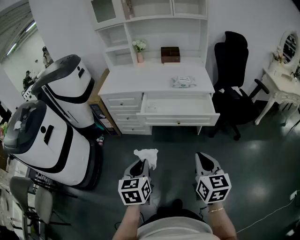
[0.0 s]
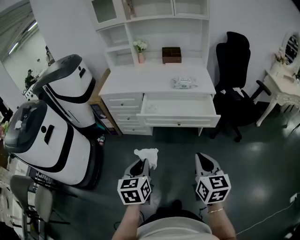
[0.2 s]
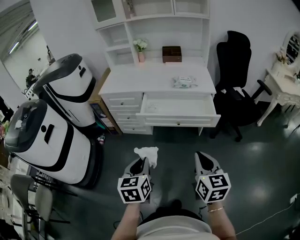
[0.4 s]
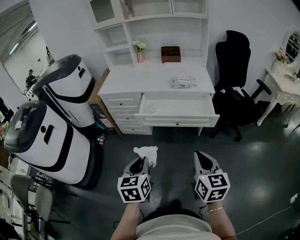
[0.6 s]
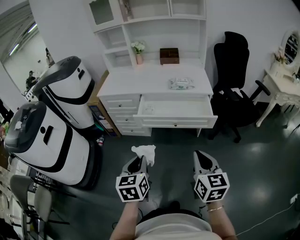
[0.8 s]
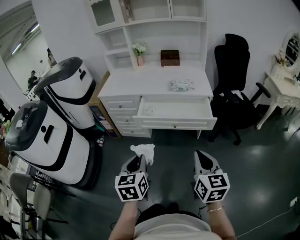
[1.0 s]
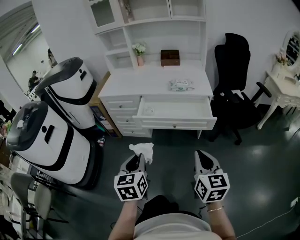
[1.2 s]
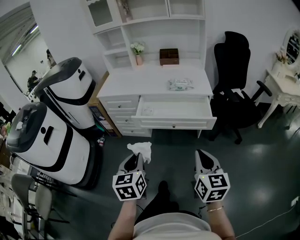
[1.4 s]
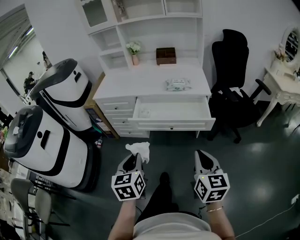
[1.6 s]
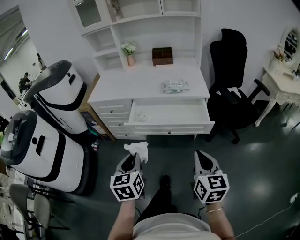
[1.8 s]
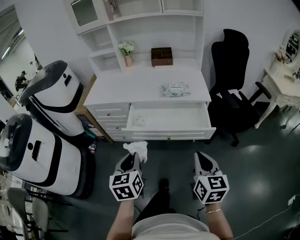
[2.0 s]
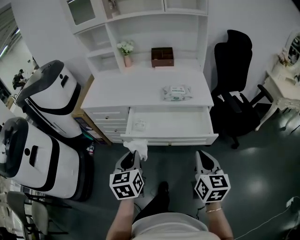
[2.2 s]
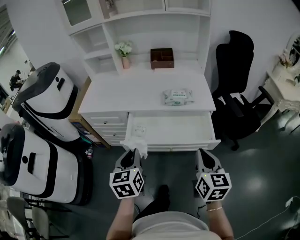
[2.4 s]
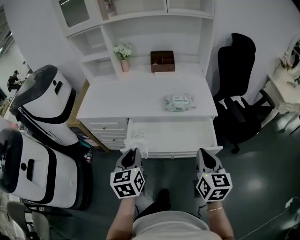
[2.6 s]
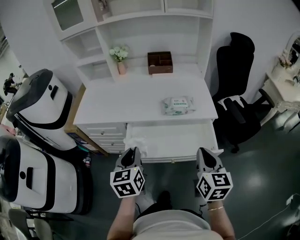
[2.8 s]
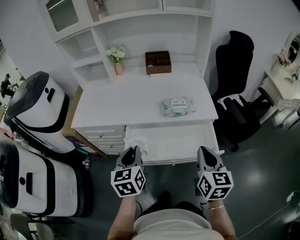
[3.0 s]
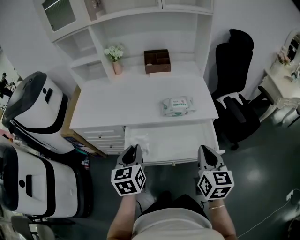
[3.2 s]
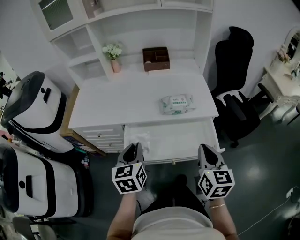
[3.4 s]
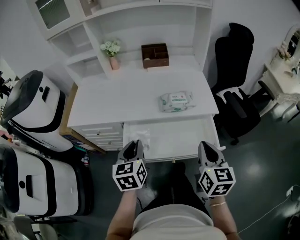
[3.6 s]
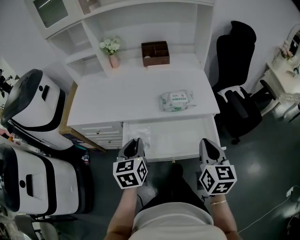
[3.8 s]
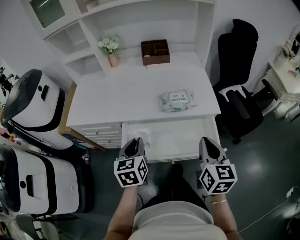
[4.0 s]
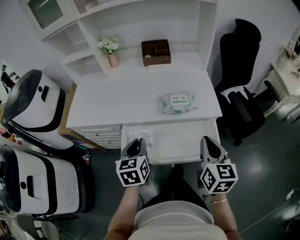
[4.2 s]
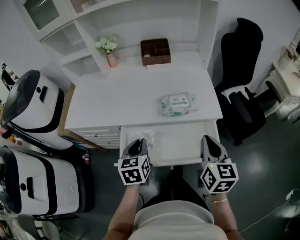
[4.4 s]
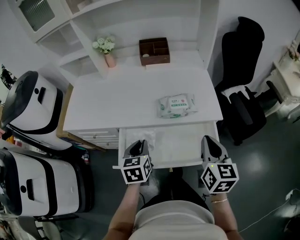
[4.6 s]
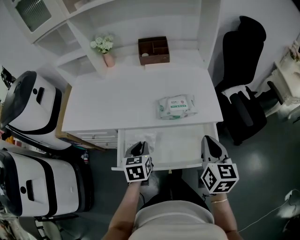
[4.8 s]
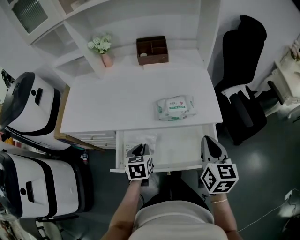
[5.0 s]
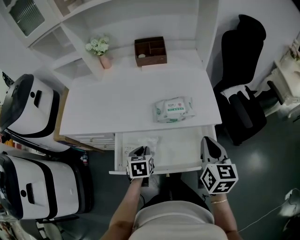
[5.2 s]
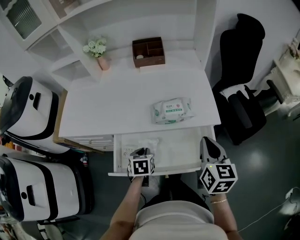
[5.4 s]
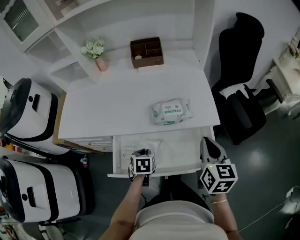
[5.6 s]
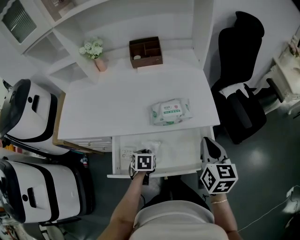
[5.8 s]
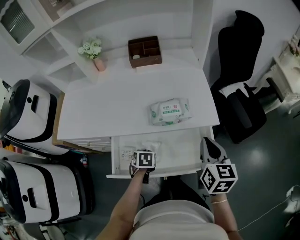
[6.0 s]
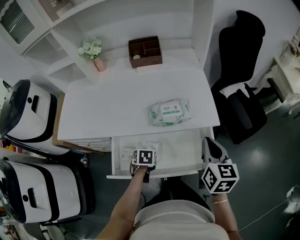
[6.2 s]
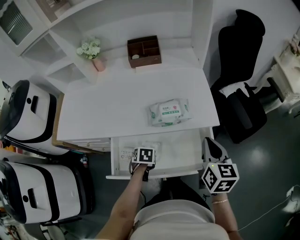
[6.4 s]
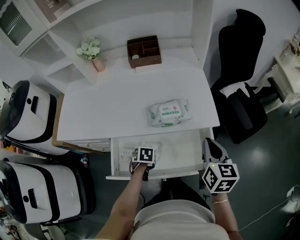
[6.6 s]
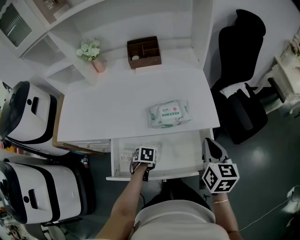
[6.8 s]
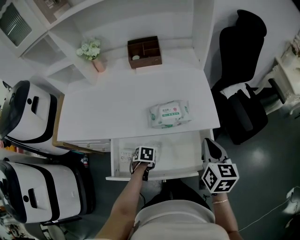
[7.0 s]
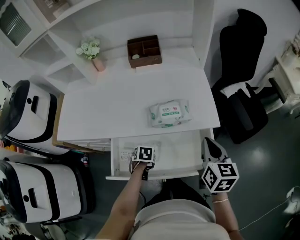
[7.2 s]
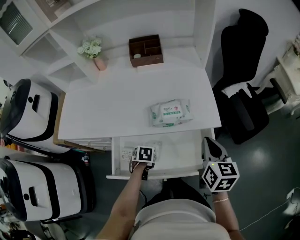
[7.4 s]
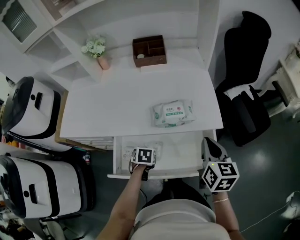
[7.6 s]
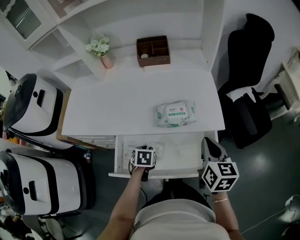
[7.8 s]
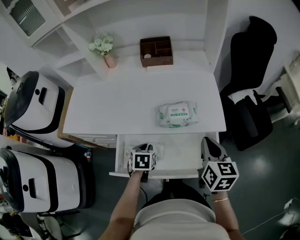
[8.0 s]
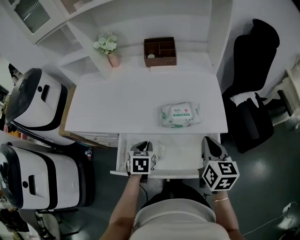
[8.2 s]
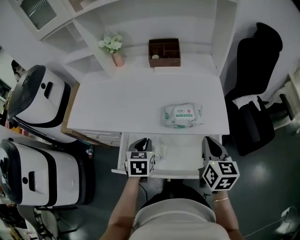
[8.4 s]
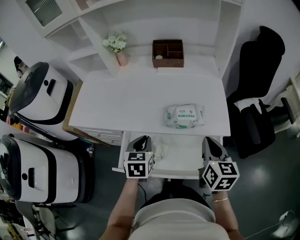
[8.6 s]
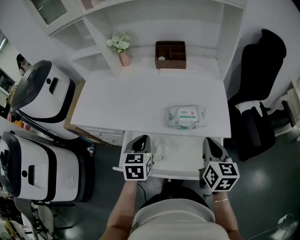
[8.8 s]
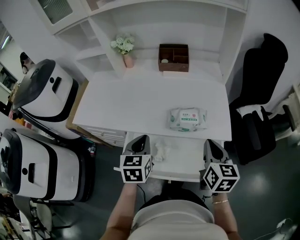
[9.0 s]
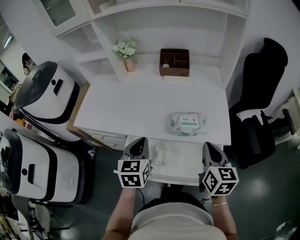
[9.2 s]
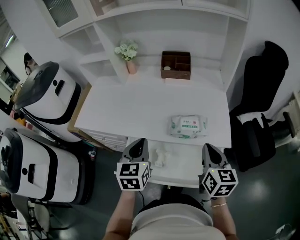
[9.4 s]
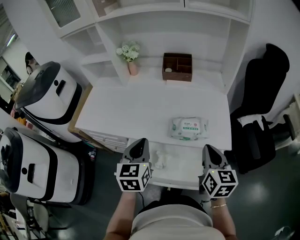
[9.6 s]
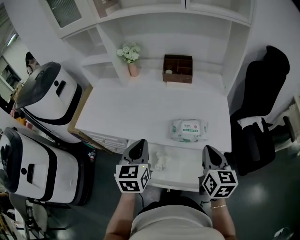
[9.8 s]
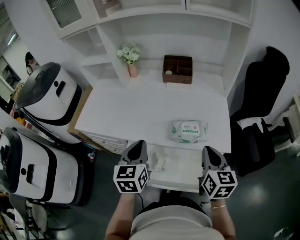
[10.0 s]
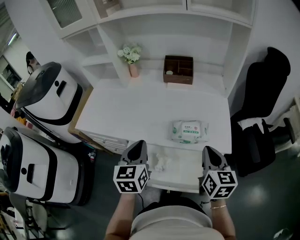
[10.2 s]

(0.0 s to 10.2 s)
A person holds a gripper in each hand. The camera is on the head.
0.0 s - 1.4 s: The right gripper travels to the right by roughly 5 cm, while the left gripper moves approximately 5 cm.
1.4 s - 3.0 s: Both grippers move forward, about 35 cm.
3.0 s - 4.4 s: The left gripper is displaced forward and downward by roughly 10 cm. The right gripper travels forward by roughly 10 cm.
4.4 s - 5.8 s: The right gripper heads forward, covering approximately 5 cm. Meanwhile the left gripper travels downward by about 15 cm, and tips its fingers downward by roughly 30 degrees.
5.8 s - 7.2 s: The left gripper goes approximately 5 cm downward.
7.2 s - 8.8 s: The right gripper shifts by about 5 cm. The left gripper goes about 25 cm upward, and tilts its fingers roughly 40 degrees upward.
8.8 s - 10.2 s: The left gripper is displaced upward by about 5 cm.

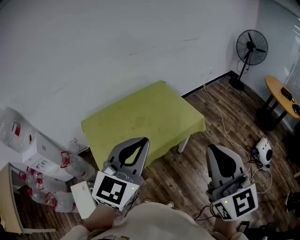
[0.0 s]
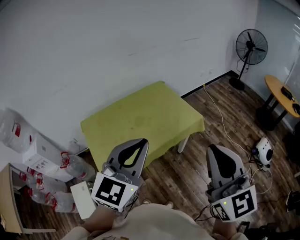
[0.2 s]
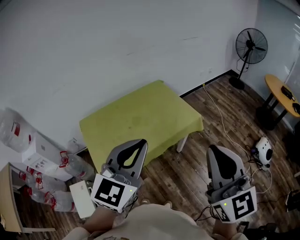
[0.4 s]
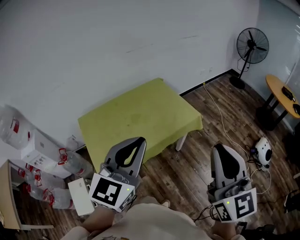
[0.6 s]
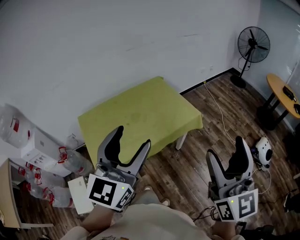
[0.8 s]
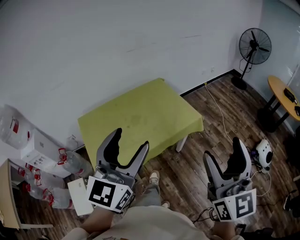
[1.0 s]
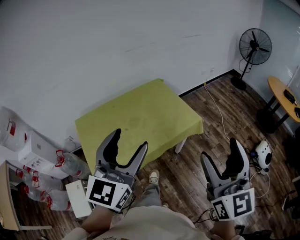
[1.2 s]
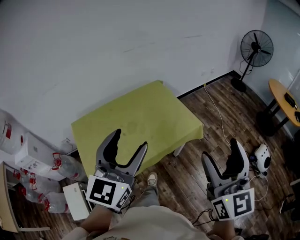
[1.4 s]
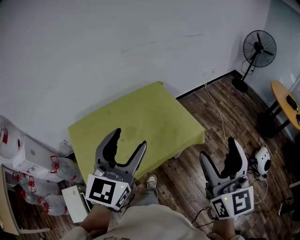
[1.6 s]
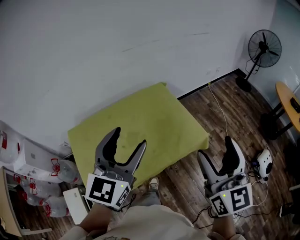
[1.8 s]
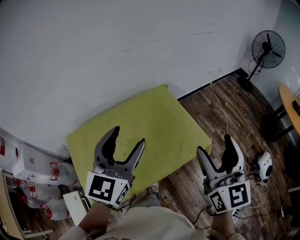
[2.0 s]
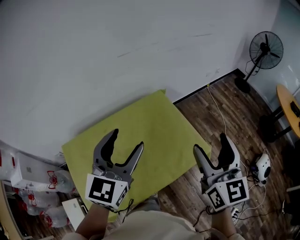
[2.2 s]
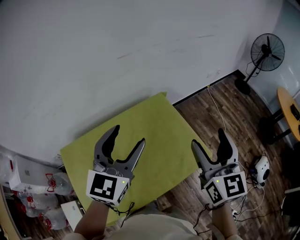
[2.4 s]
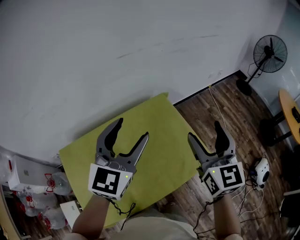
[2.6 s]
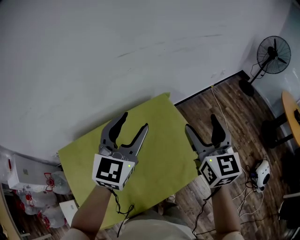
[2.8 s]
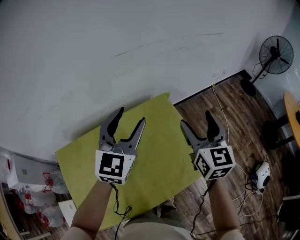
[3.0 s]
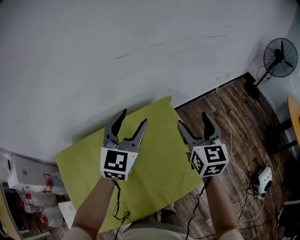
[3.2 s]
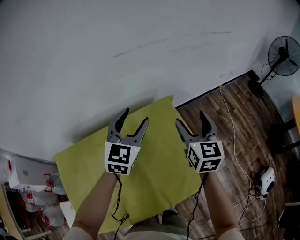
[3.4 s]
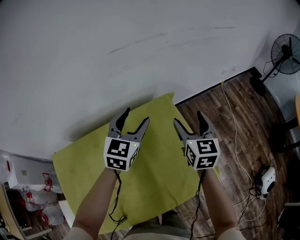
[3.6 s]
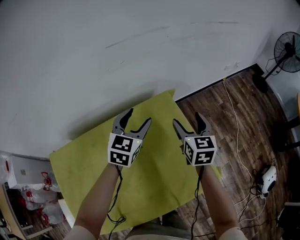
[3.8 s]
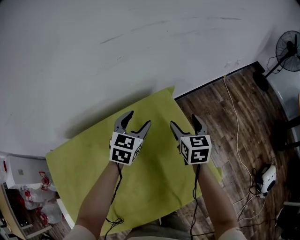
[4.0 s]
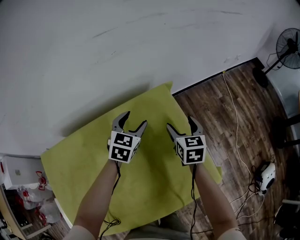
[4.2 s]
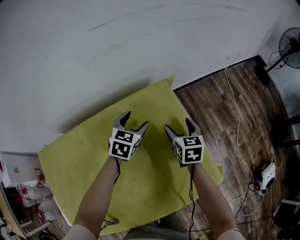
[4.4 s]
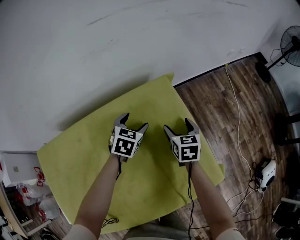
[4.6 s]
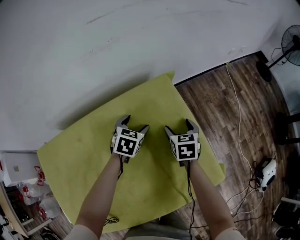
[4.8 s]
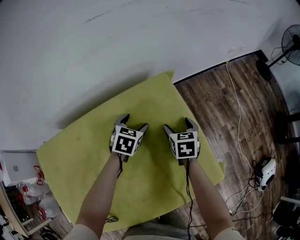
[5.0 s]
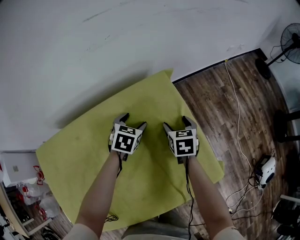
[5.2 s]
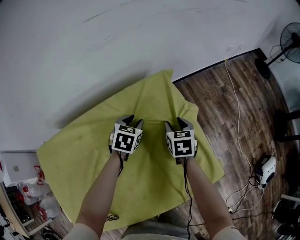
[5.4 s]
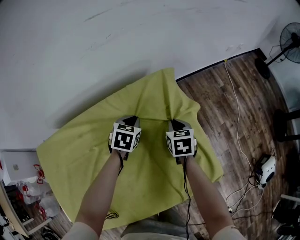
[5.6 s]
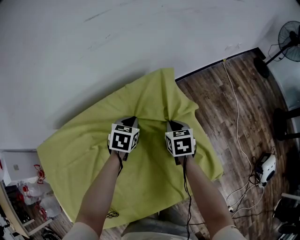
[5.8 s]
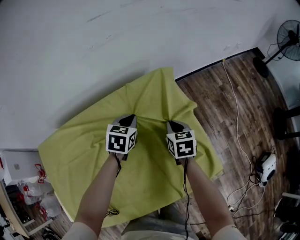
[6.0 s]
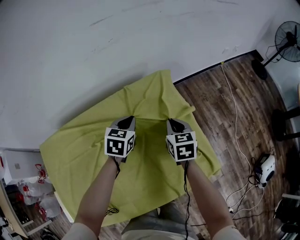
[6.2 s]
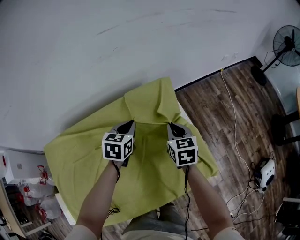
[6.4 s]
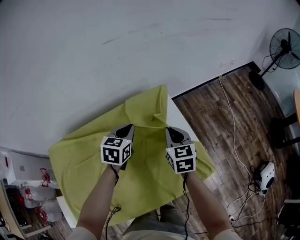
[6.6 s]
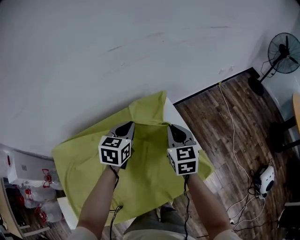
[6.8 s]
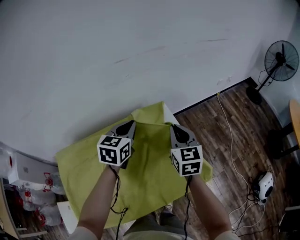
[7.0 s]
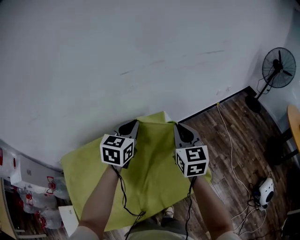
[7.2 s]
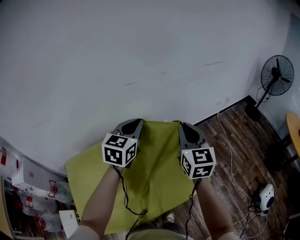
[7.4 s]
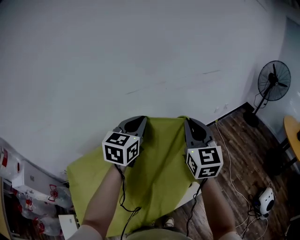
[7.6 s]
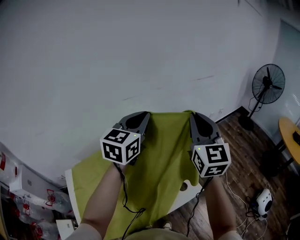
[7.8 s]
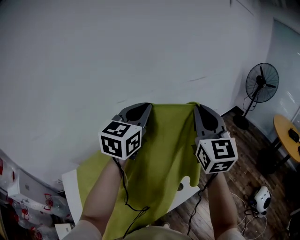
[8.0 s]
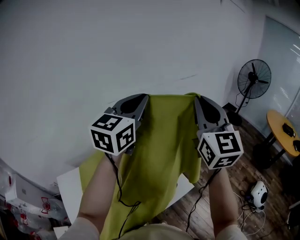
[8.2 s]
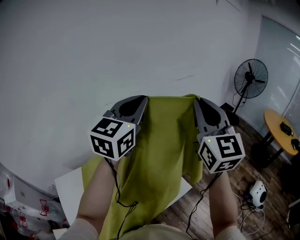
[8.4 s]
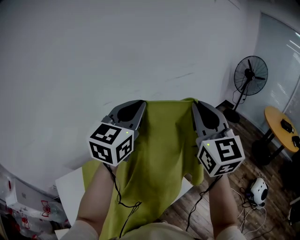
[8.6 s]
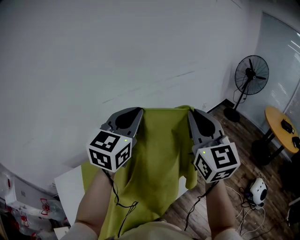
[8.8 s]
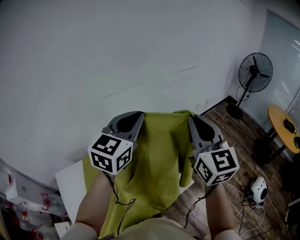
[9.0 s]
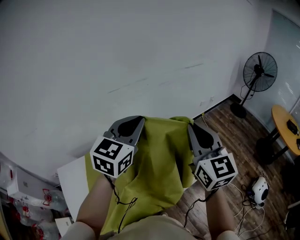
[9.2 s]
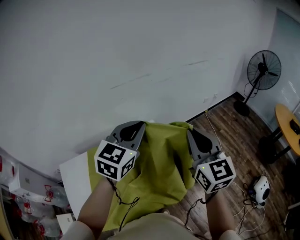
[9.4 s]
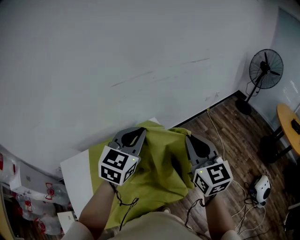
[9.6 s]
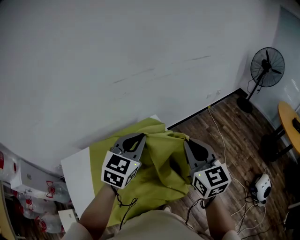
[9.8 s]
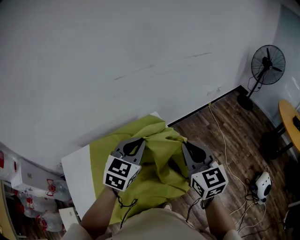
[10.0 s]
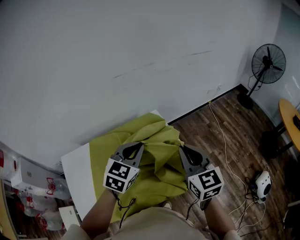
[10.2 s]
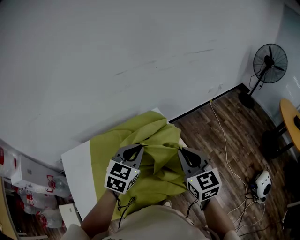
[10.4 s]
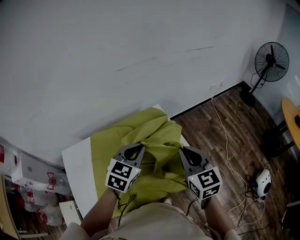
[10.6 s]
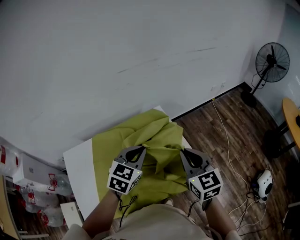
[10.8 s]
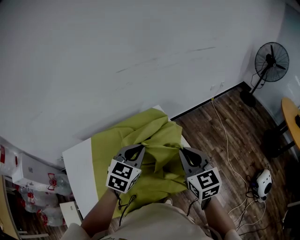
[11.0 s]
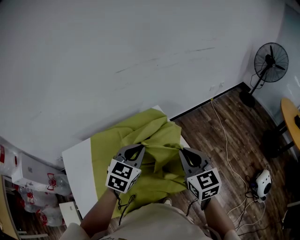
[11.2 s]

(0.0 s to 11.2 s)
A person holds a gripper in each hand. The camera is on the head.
0.0 s - 1.6 s: The grippers both shift forward by approximately 20 cm. The right gripper opens up; the left gripper opens.
1.6 s - 3.2 s: The pair of grippers is taken forward, roughly 50 cm.
3.2 s - 4.8 s: Both grippers move downward, about 35 cm. The right gripper points its fingers roughly 40 degrees further downward; the left gripper angles its fingers downward, by about 40 degrees.
4.8 s - 6.4 s: The grippers both shift upward and backward by some 10 cm. The right gripper closes up; the left gripper closes.
6.4 s - 8.0 s: Both grippers travel together upward, approximately 50 cm. The right gripper tips its fingers upward by some 50 degrees; the left gripper tips its fingers upward by about 40 degrees.
8.0 s - 9.6 s: The left gripper moves downward and backward, about 15 cm, while the right gripper travels downward by approximately 15 cm, and swivels about 20 degrees.
9.6 s - 11.2 s: The left gripper heads downward and backward, covering some 15 cm, while the right gripper moves downward, roughly 10 cm.

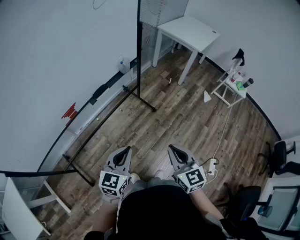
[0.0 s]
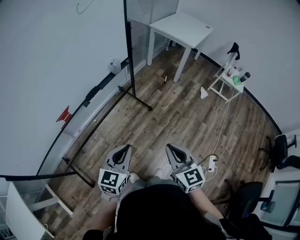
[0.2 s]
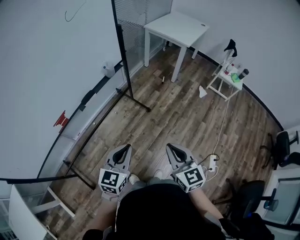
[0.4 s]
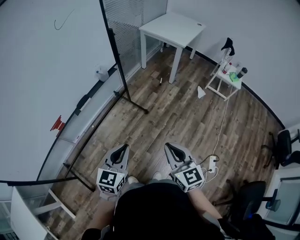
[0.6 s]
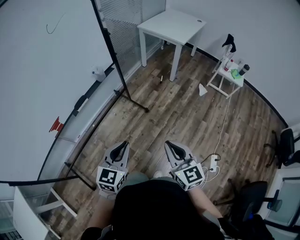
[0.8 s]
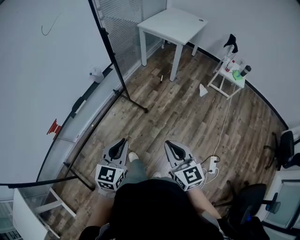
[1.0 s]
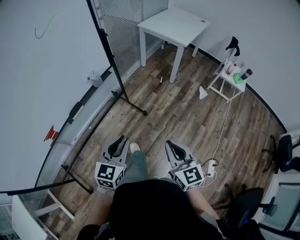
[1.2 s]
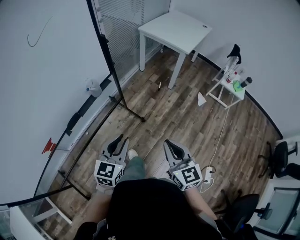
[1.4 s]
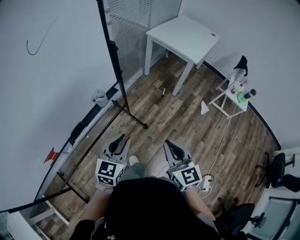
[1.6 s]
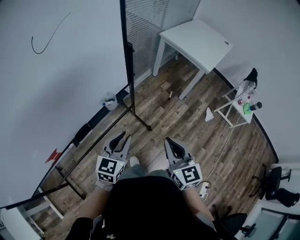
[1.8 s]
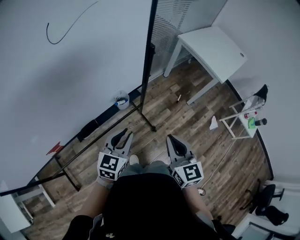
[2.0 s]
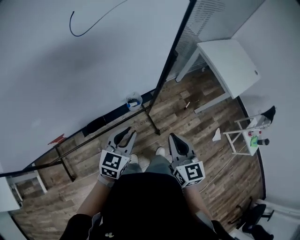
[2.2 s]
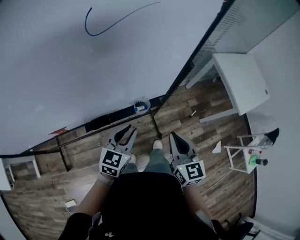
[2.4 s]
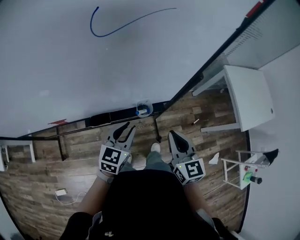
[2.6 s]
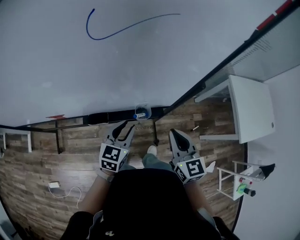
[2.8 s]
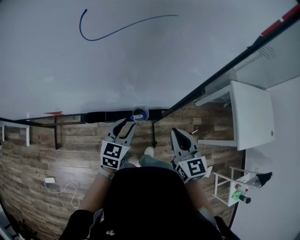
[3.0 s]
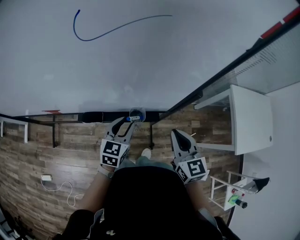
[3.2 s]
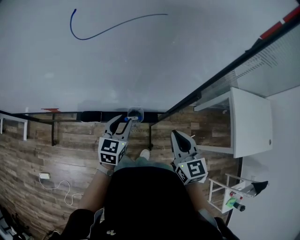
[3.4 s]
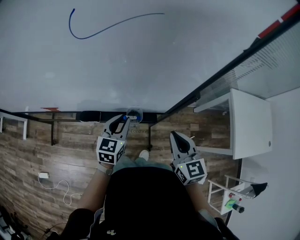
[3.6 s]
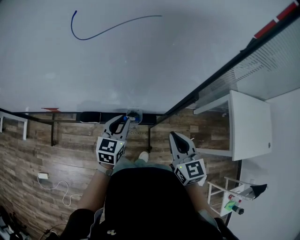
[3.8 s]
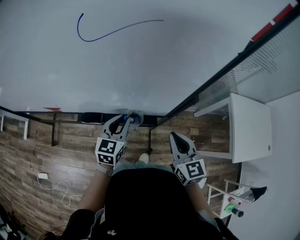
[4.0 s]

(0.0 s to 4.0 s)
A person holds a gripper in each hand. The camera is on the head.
0.0 s - 1.4 s: The two grippers go approximately 25 cm forward and to the right.
1.4 s - 2.6 s: The left gripper shifts by some 30 cm, and turns by approximately 40 degrees; the right gripper shifts by roughly 40 cm, and turns by about 40 degrees.
2.6 s - 4.0 s: The left gripper is displaced forward by roughly 5 cm, and changes its angle by some 20 degrees. The right gripper travels to the right and forward by about 10 cm.
